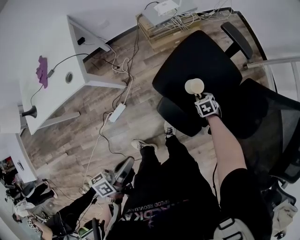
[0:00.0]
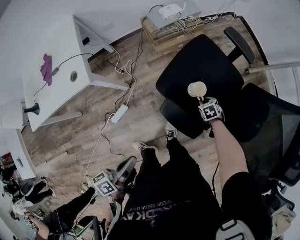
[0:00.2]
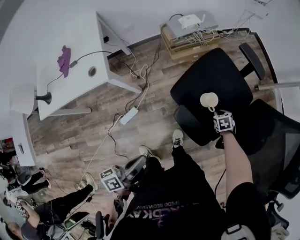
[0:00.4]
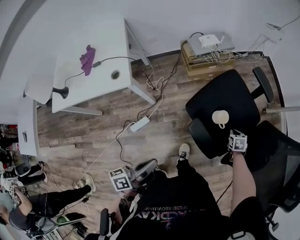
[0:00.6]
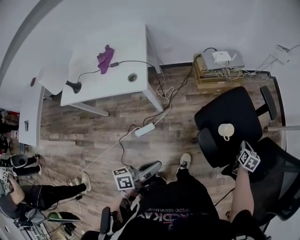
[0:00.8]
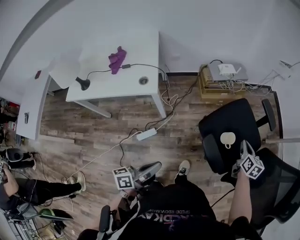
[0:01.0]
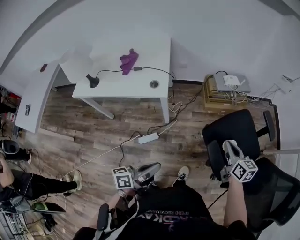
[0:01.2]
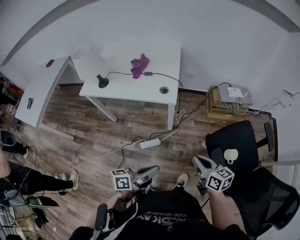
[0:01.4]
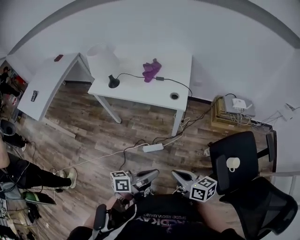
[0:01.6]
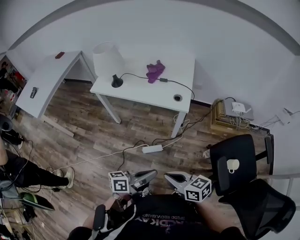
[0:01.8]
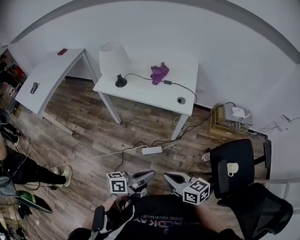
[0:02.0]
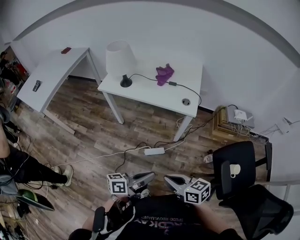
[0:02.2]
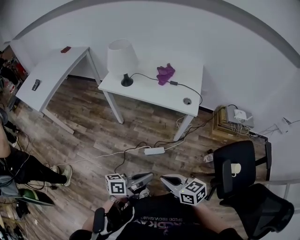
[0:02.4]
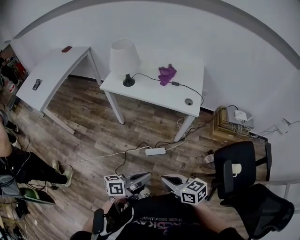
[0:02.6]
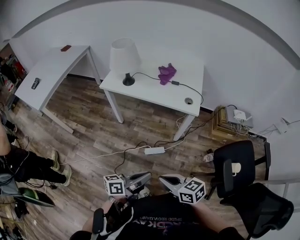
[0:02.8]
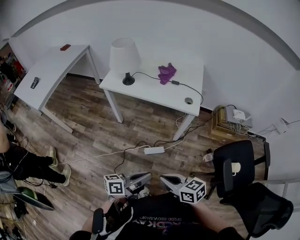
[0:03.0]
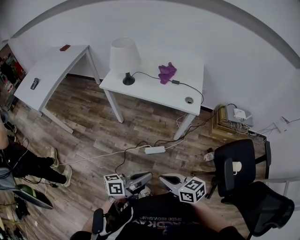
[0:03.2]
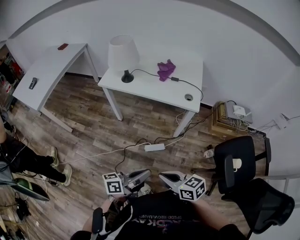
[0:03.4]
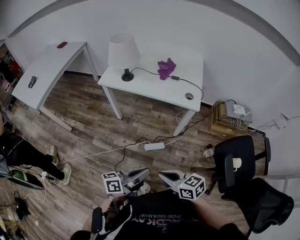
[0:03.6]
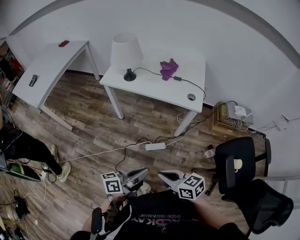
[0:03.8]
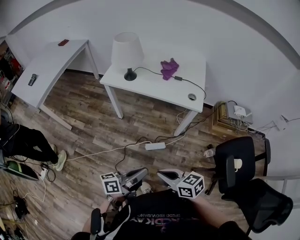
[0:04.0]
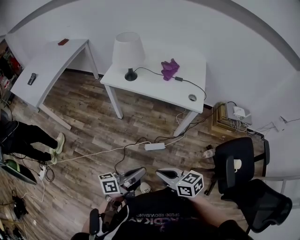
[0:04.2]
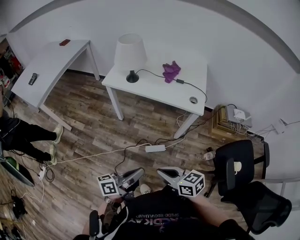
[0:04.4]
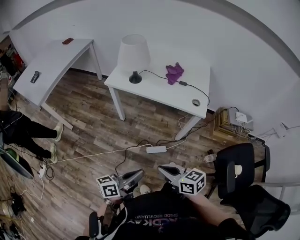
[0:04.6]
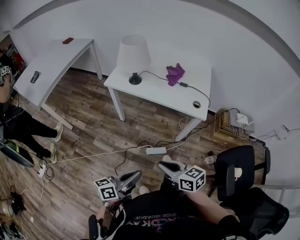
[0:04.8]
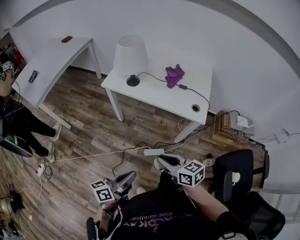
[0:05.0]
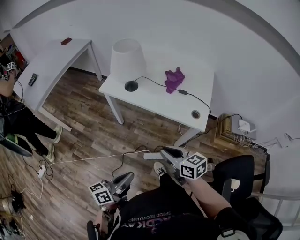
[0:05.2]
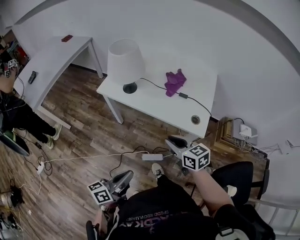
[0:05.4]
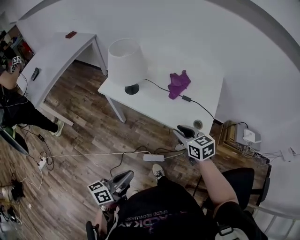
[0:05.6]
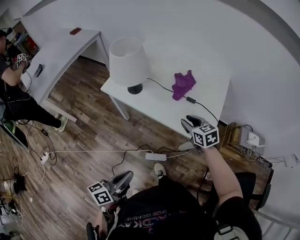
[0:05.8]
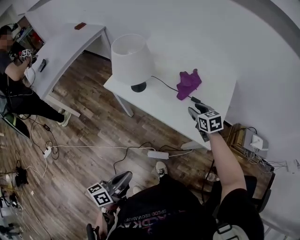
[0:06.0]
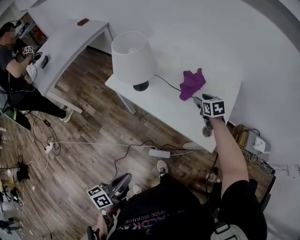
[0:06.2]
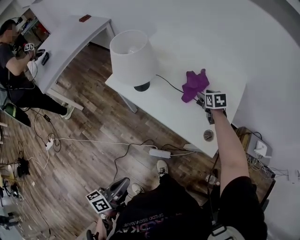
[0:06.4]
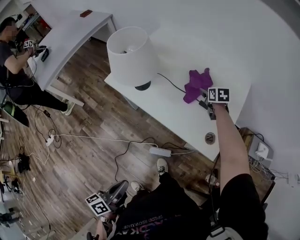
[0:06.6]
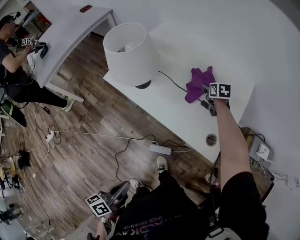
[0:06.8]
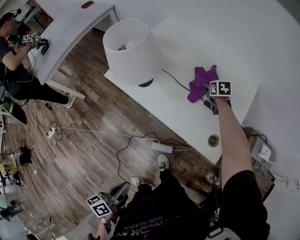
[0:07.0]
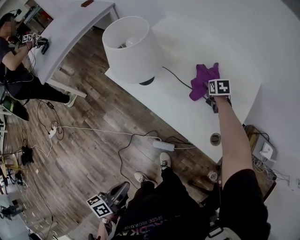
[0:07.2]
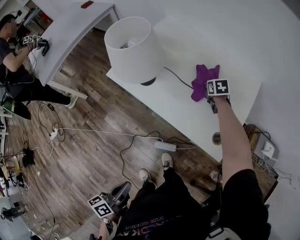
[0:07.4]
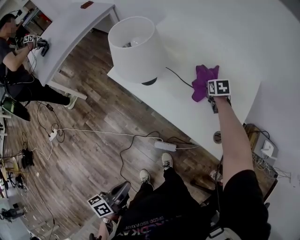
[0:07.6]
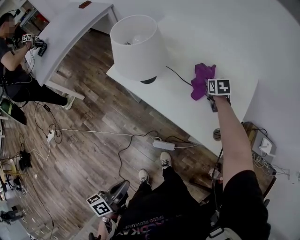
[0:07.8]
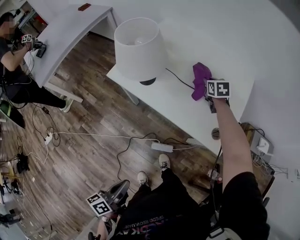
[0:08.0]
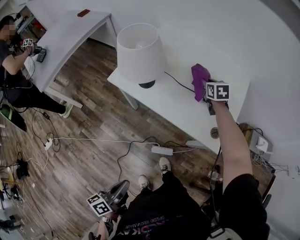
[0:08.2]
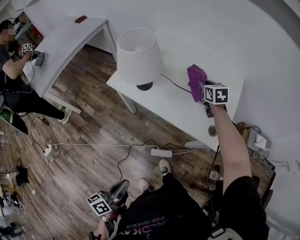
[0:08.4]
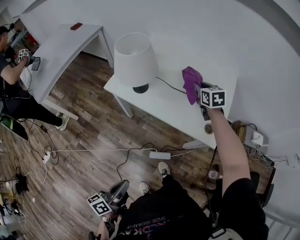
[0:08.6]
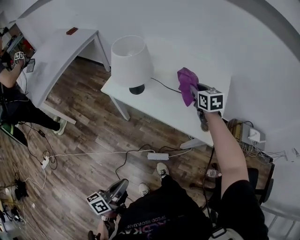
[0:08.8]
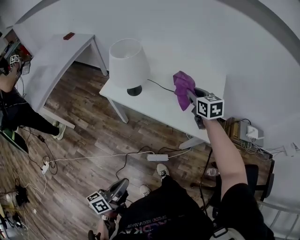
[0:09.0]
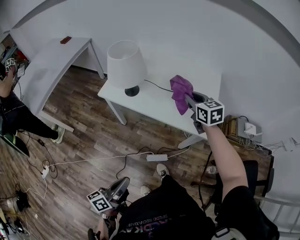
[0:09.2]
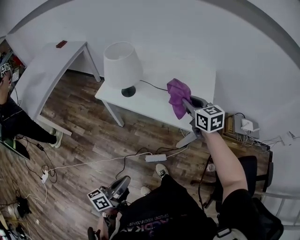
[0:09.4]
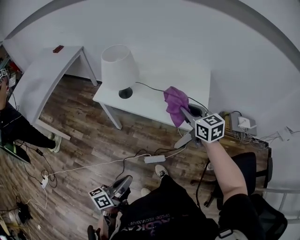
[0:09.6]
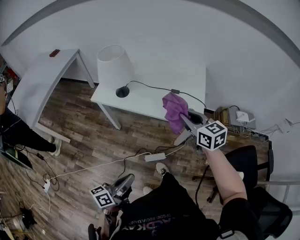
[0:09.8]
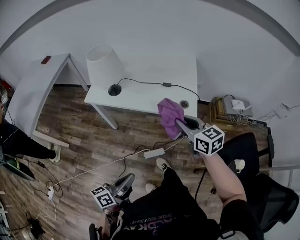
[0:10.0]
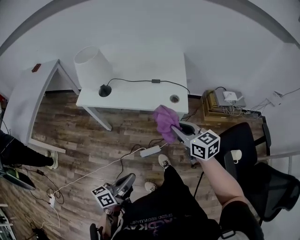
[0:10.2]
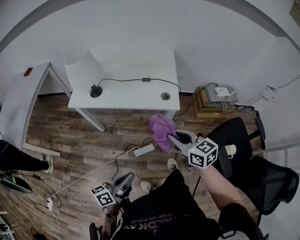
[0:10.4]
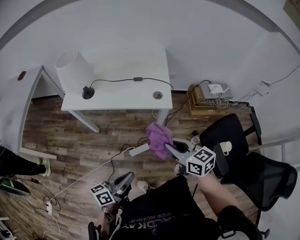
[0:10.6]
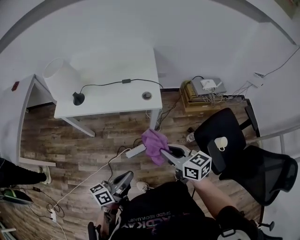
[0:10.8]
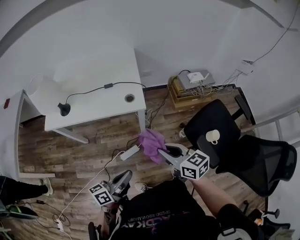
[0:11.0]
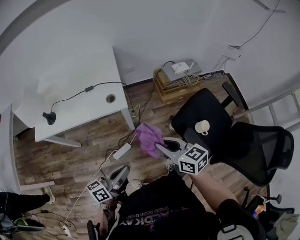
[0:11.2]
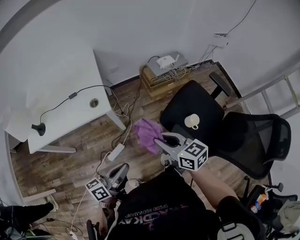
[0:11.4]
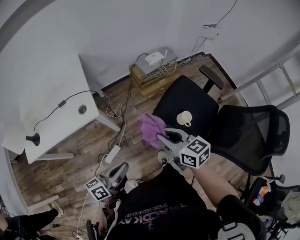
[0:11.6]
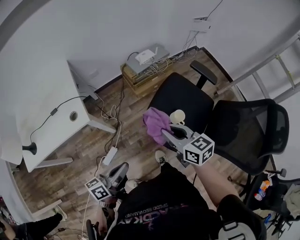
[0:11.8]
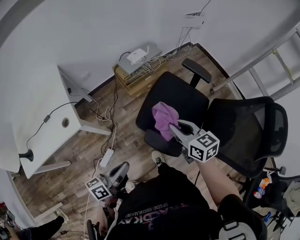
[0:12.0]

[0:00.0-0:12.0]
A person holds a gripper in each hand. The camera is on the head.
0:00.0 to 0:01.6: The right gripper ends up roughly 60 cm from where it was, tips its fingers upward by approximately 50 degrees, and closes its fingers. Meanwhile the left gripper changes place by about 20 cm, and rotates about 20 degrees.
0:01.6 to 0:03.0: Both grippers move to the left, some 15 cm.
0:03.0 to 0:04.4: Both grippers travel together to the left, approximately 5 cm.
0:04.4 to 0:06.0: The right gripper heads forward and to the right, covering about 60 cm, swivels approximately 30 degrees, and opens. Meanwhile the left gripper travels forward by roughly 15 cm, and changes its angle by some 30 degrees.
0:06.0 to 0:07.6: The right gripper travels forward and downward by some 20 cm, and closes.
0:07.6 to 0:09.0: The left gripper shifts by some 5 cm; the right gripper travels upward and backward by approximately 25 cm, and changes its angle by approximately 30 degrees.
0:09.0 to 0:10.4: The left gripper shifts approximately 10 cm to the right and backward, and changes its angle by roughly 30 degrees. Meanwhile the right gripper is displaced backward by some 35 cm.
0:10.4 to 0:12.0: The pair of grippers is taken about 50 cm. The right gripper rotates some 40 degrees. The left gripper turns by some 30 degrees.

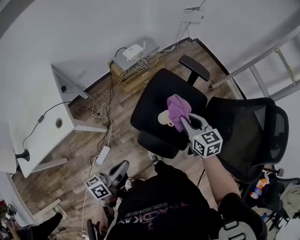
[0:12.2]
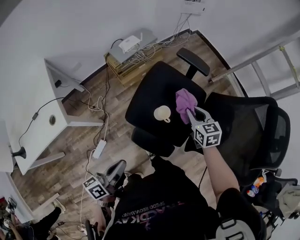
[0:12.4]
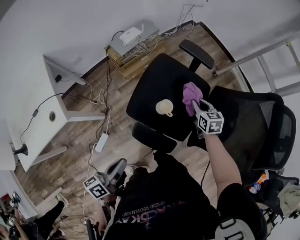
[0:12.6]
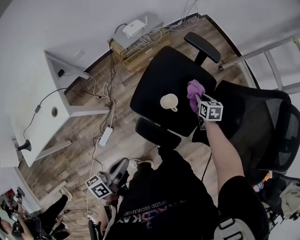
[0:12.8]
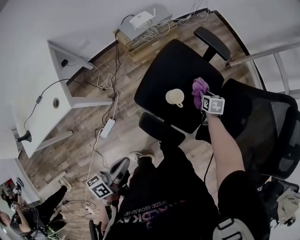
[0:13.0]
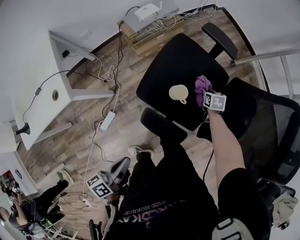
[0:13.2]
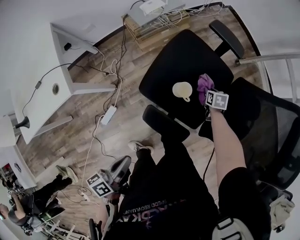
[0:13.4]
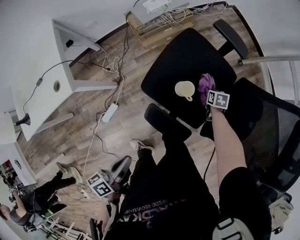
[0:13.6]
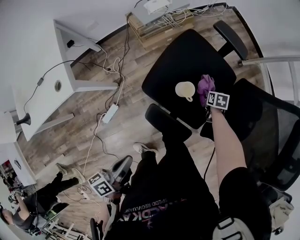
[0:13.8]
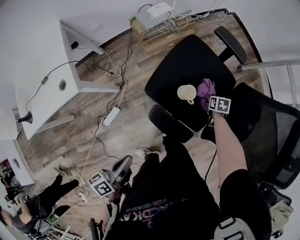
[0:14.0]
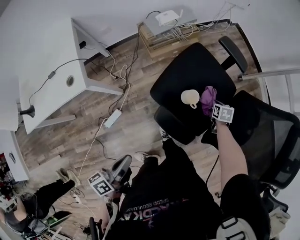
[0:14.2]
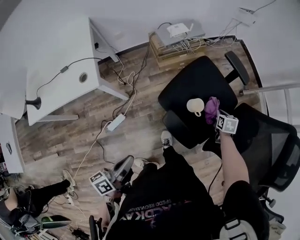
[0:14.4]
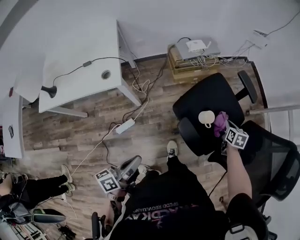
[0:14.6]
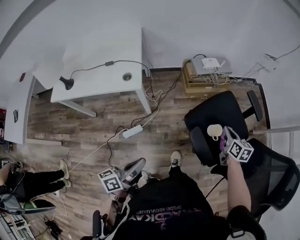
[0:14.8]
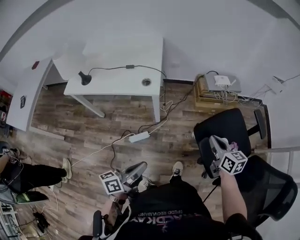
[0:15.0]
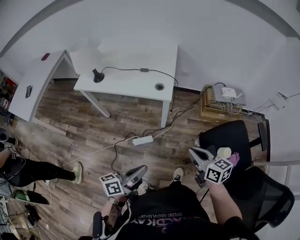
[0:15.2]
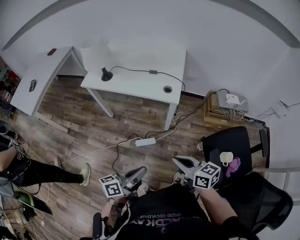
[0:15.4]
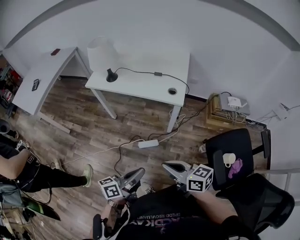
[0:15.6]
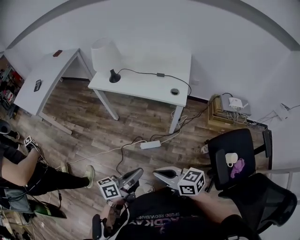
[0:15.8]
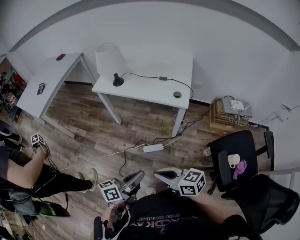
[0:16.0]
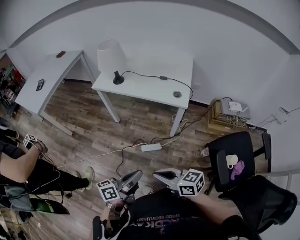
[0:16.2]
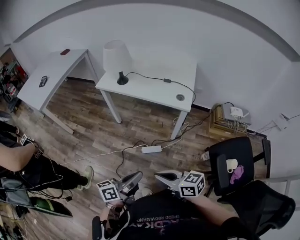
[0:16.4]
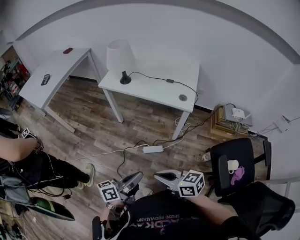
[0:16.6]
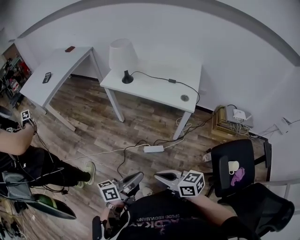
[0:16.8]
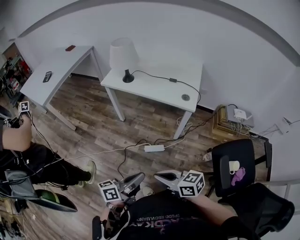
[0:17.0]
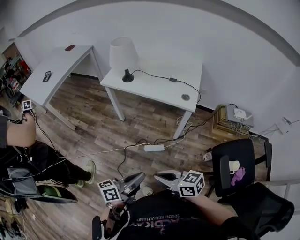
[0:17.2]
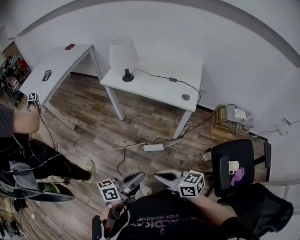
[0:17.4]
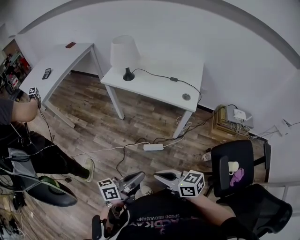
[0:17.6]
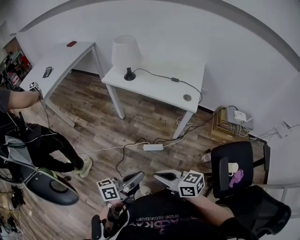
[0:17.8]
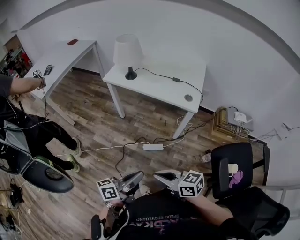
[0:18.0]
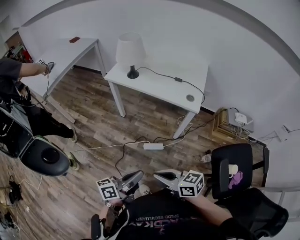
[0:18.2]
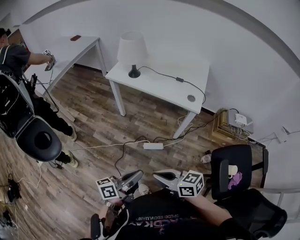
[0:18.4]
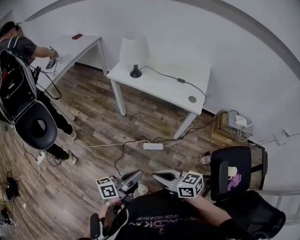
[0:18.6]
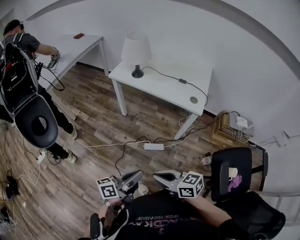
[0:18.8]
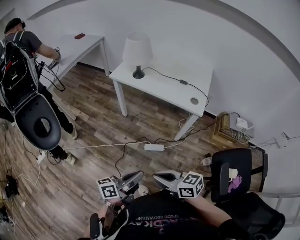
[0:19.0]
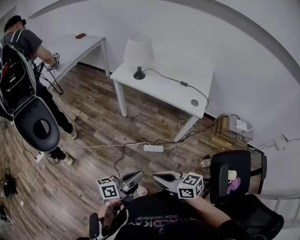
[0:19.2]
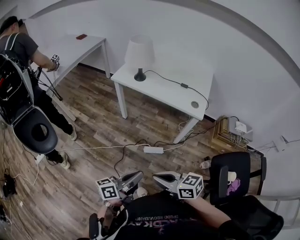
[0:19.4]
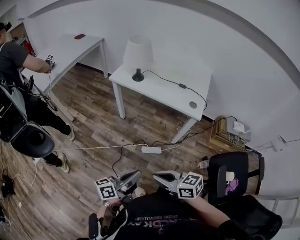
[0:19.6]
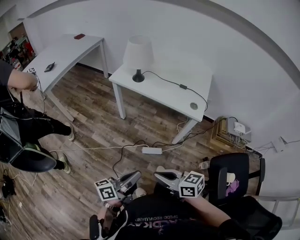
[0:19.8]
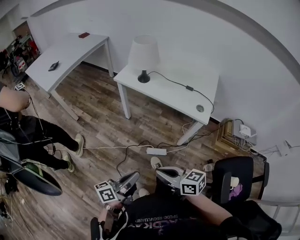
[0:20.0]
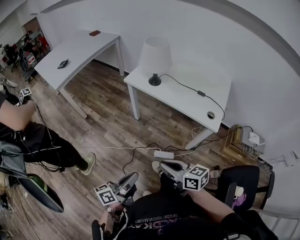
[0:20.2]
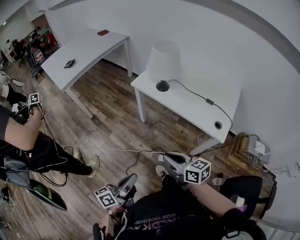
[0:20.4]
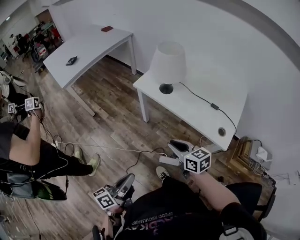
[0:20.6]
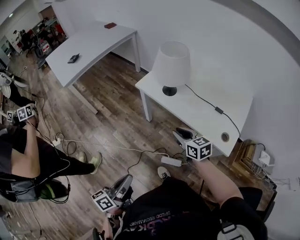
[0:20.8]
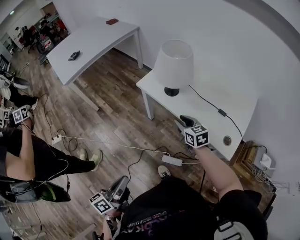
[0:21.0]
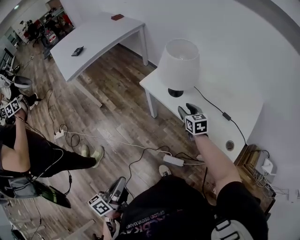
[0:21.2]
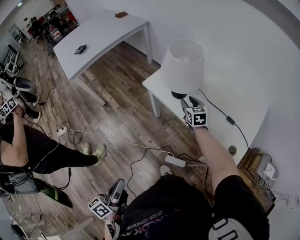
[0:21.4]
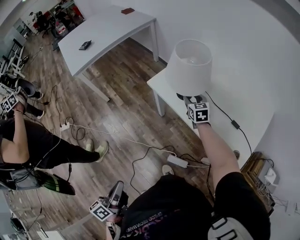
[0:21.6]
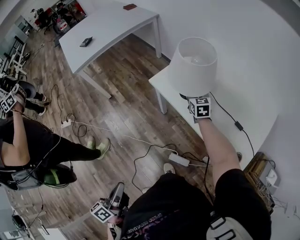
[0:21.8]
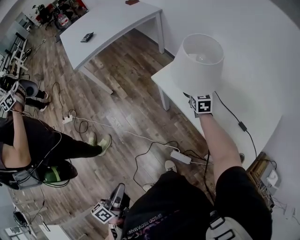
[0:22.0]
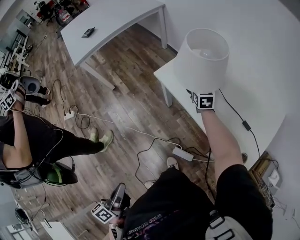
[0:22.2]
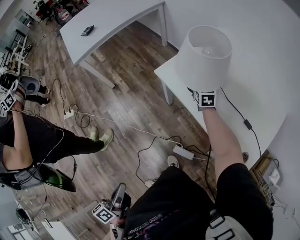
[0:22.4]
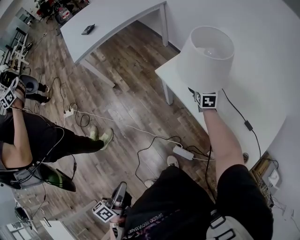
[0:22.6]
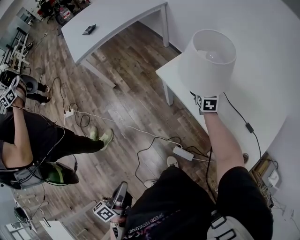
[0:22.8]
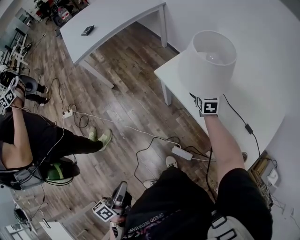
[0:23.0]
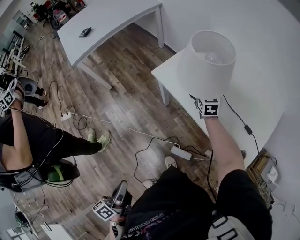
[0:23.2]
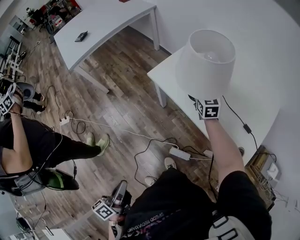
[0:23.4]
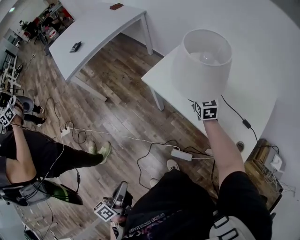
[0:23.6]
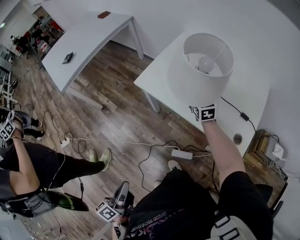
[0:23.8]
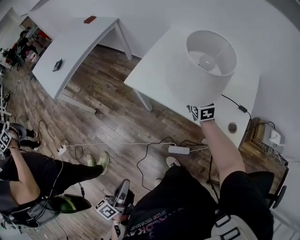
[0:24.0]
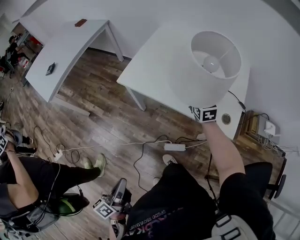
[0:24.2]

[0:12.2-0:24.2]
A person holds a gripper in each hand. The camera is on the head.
0:12.2 to 0:13.8: The left gripper is displaced backward by about 5 cm, and turns by approximately 20 degrees, while the right gripper is displaced downward by some 30 cm, and tips its fingers downward by roughly 40 degrees.
0:13.8 to 0:15.2: The left gripper moves about 25 cm, and rotates approximately 30 degrees; the right gripper ends up about 60 cm from where it was, angles its fingers upward, by roughly 50 degrees, and closes.
0:15.2 to 0:16.6: The right gripper heads to the left, covering approximately 30 cm, and turns by some 30 degrees; the left gripper moves to the left, about 15 cm.
0:16.6 to 0:19.8: The grippers make only small movements.
0:19.8 to 0:21.2: The left gripper heads forward and to the left, covering approximately 20 cm, and changes its angle by roughly 40 degrees. Meanwhile the right gripper goes approximately 60 cm forward, changes its angle by about 30 degrees, and opens up.
0:21.2 to 0:22.6: The right gripper shifts about 15 cm forward.
0:22.6 to 0:24.2: The left gripper rotates about 30 degrees. Meanwhile the right gripper moves backward, to the right and upward, some 25 cm.
